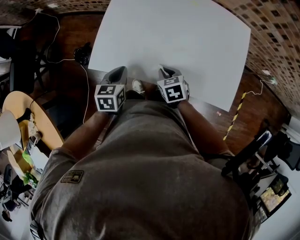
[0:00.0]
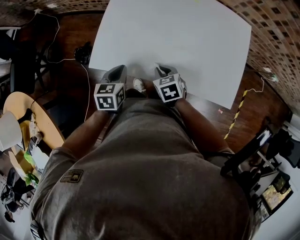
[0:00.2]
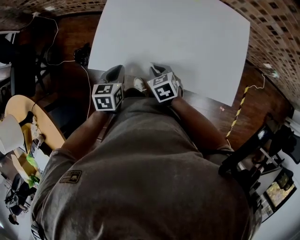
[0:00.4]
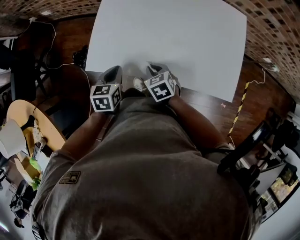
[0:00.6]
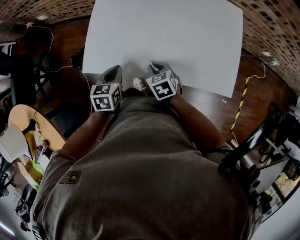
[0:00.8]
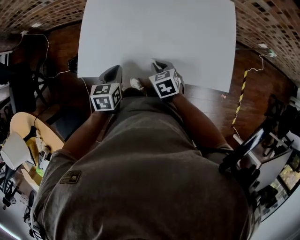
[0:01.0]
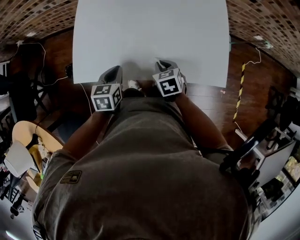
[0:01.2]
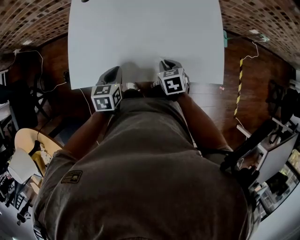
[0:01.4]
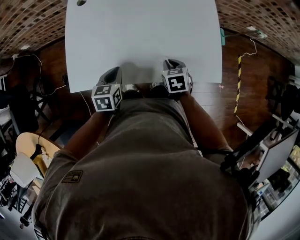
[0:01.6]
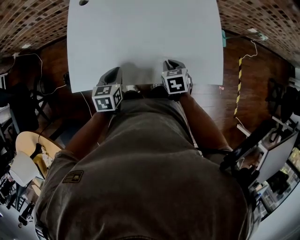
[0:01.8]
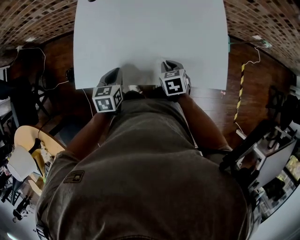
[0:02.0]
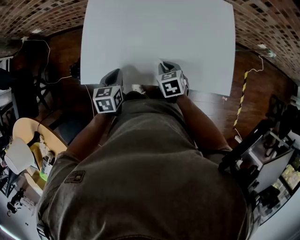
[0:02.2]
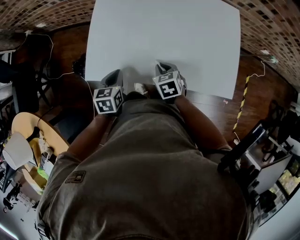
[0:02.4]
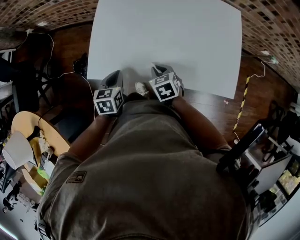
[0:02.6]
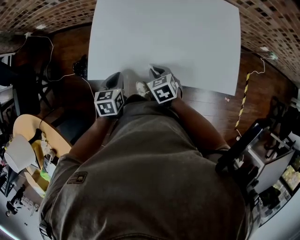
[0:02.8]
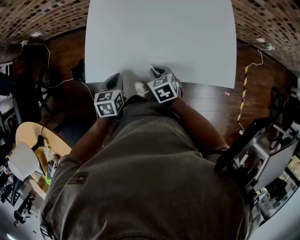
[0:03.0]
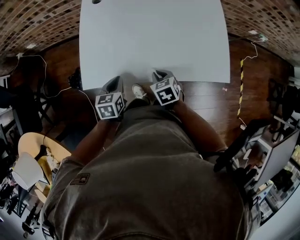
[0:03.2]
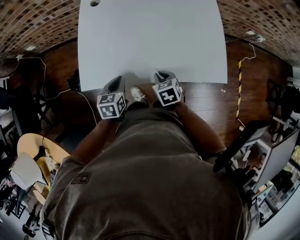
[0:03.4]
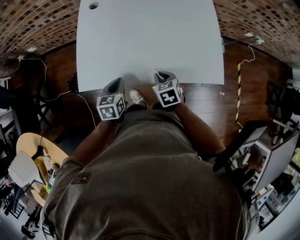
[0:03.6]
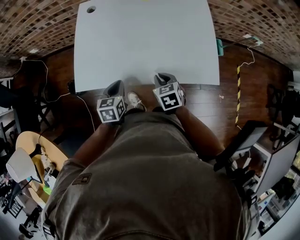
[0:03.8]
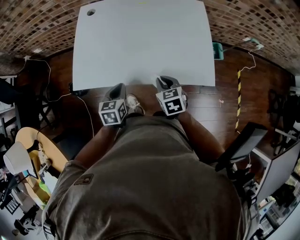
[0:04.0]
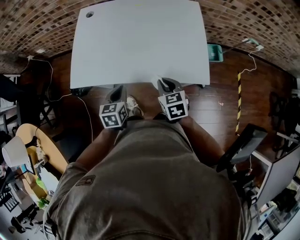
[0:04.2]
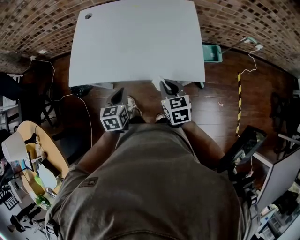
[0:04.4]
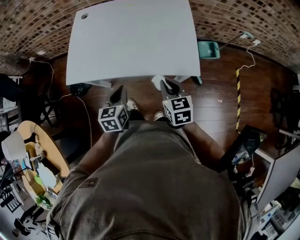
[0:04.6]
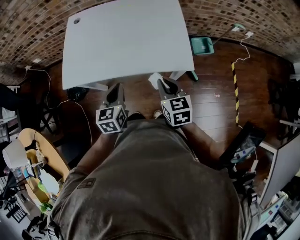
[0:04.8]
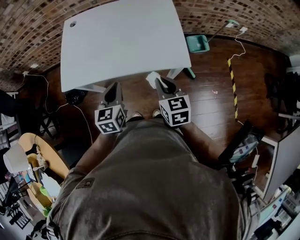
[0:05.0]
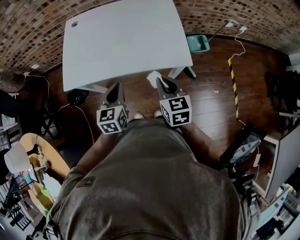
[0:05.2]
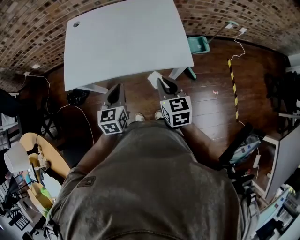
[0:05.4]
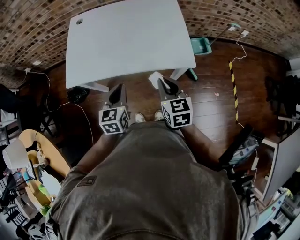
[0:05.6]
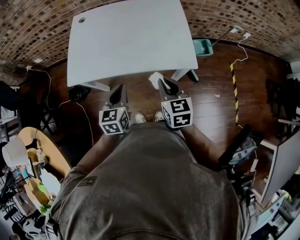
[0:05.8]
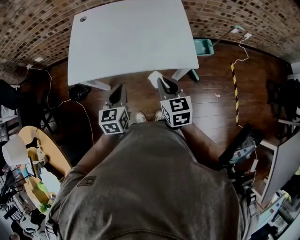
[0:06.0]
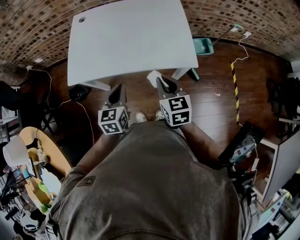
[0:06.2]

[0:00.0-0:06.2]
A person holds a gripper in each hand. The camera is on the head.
0:00.0 to 0:01.6: Both grippers move to the right, about 15 cm. The right gripper rotates approximately 20 degrees.
0:01.6 to 0:03.2: The right gripper goes some 15 cm to the left. Meanwhile the left gripper goes some 10 cm to the left.
0:03.2 to 0:04.6: The left gripper heads to the right, backward and upward, covering about 25 cm; the right gripper is displaced to the right, upward and backward by some 25 cm, and rotates approximately 30 degrees.
0:04.6 to 0:06.2: The right gripper ends up some 5 cm from where it was.

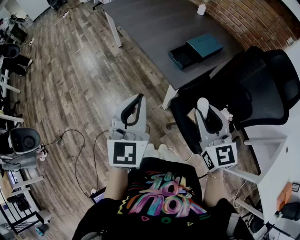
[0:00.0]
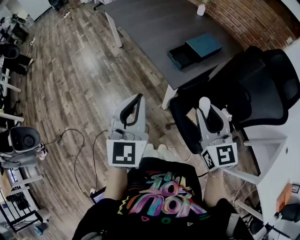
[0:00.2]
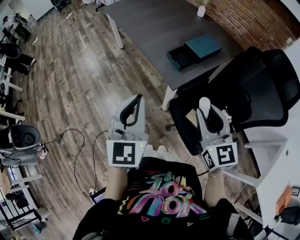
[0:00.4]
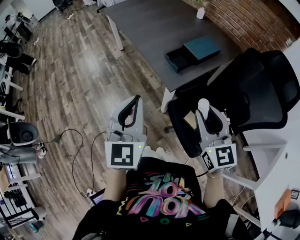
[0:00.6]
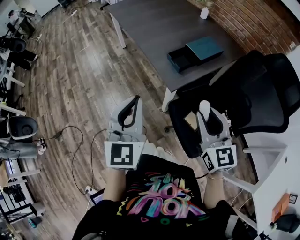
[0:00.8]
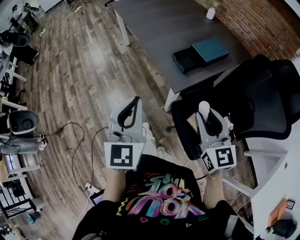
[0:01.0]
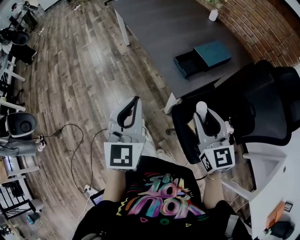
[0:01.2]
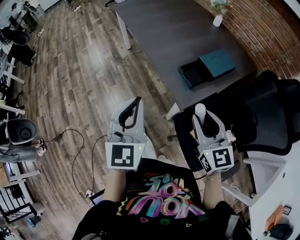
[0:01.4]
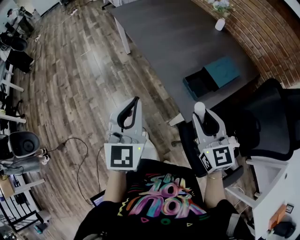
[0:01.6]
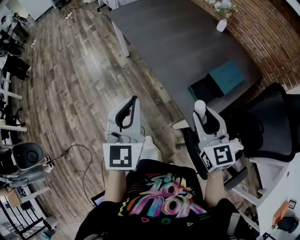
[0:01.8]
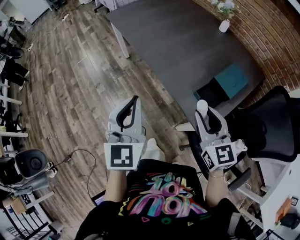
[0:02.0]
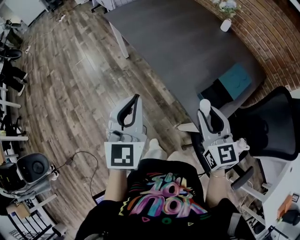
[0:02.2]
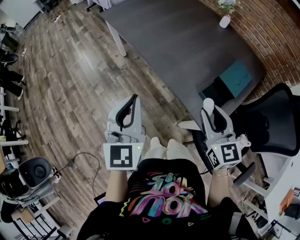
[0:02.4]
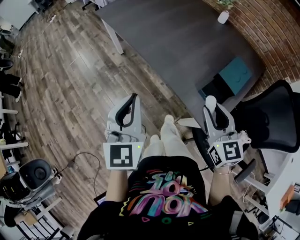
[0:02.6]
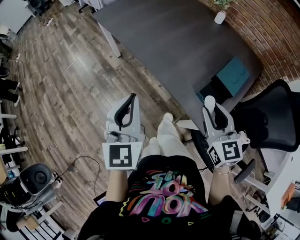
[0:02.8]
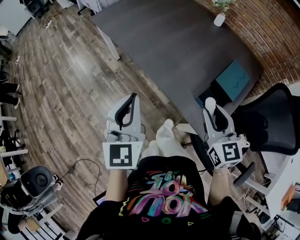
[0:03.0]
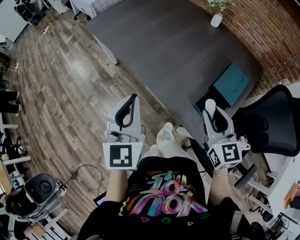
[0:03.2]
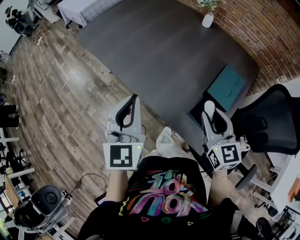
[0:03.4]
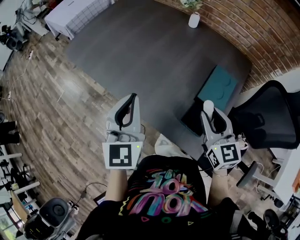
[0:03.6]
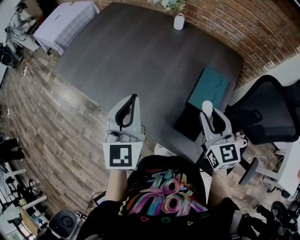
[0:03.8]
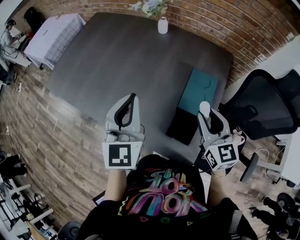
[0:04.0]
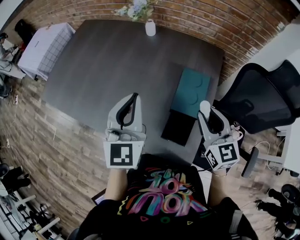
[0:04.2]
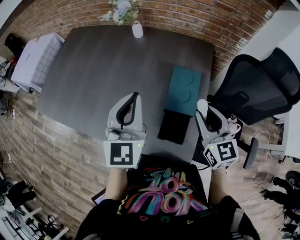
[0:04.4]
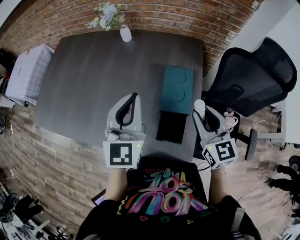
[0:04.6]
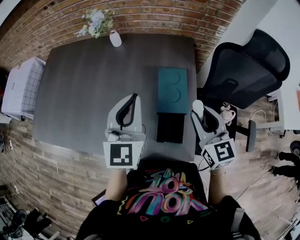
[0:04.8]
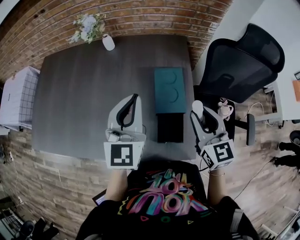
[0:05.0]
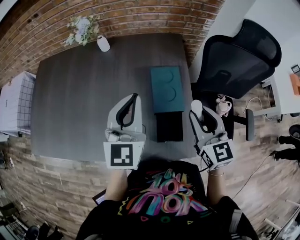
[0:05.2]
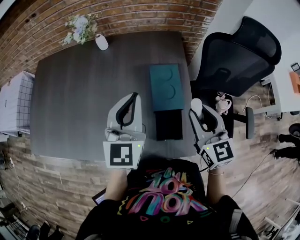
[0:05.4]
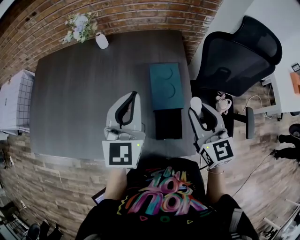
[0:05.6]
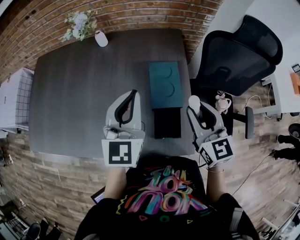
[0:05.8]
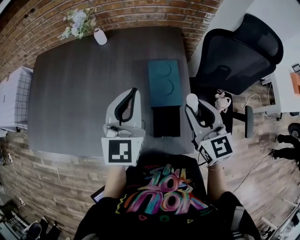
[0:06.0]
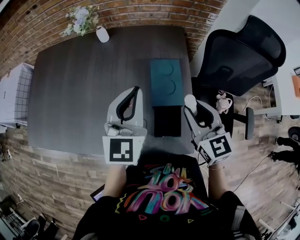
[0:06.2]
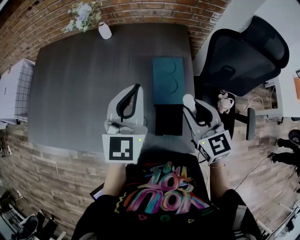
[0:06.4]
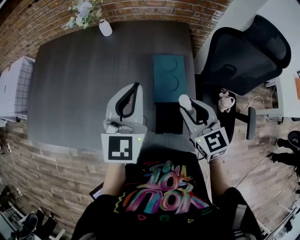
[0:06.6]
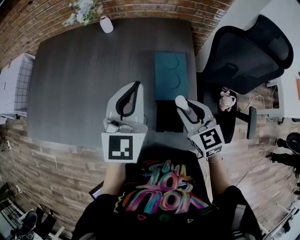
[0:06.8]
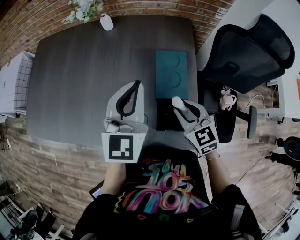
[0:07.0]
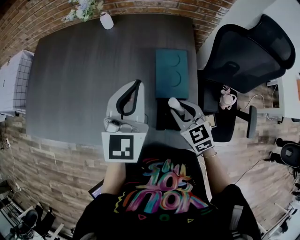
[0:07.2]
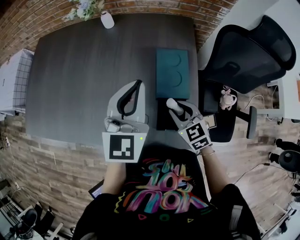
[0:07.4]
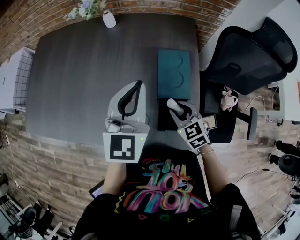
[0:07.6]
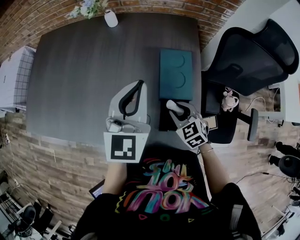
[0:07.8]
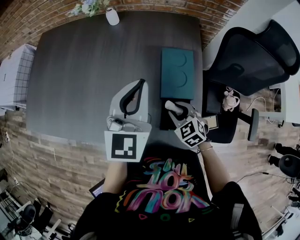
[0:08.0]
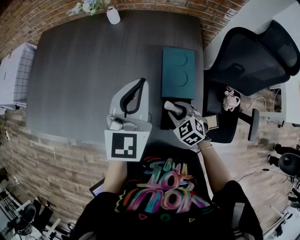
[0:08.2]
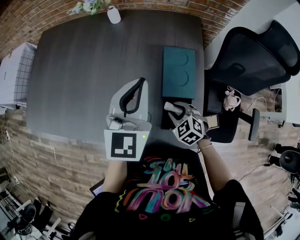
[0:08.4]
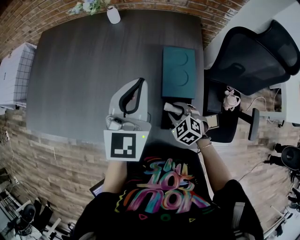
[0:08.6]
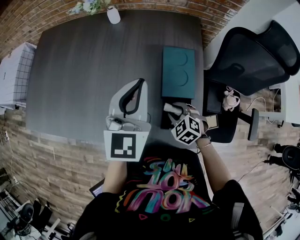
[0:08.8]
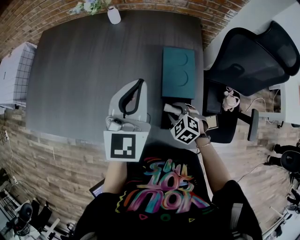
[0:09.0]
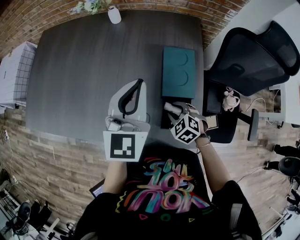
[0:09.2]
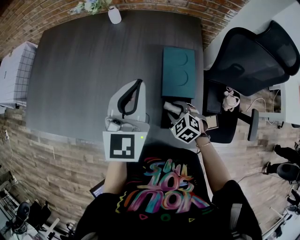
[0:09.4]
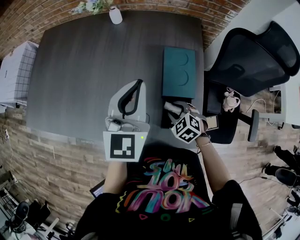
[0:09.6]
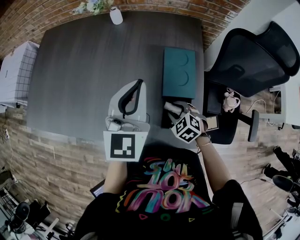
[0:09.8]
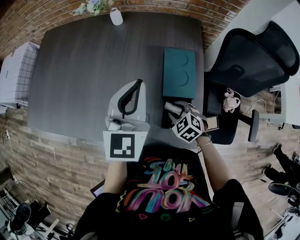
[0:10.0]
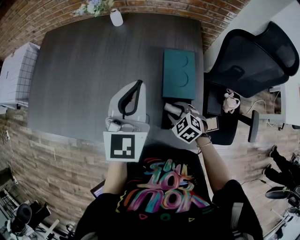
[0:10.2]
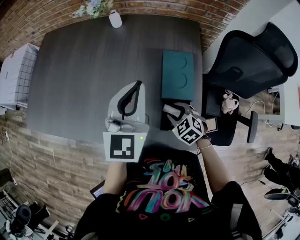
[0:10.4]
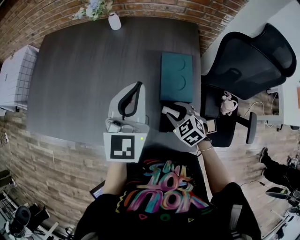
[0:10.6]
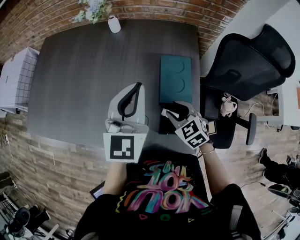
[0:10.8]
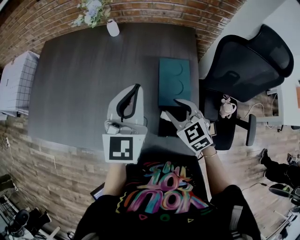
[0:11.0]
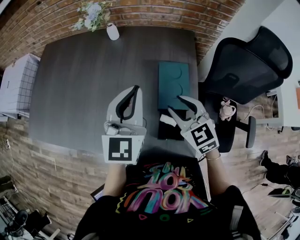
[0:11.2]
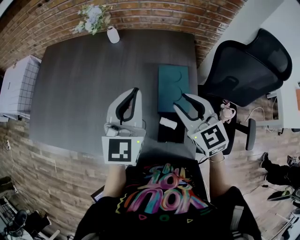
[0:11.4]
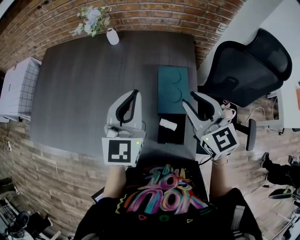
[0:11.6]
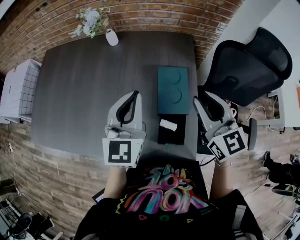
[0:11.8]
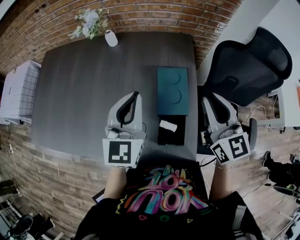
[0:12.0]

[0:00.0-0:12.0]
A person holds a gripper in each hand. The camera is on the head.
0:00.0 to 0:01.6: Both grippers travel together forward, about 20 cm.
0:01.6 to 0:03.0: The grippers both shift forward by roughly 20 cm.
0:03.0 to 0:04.4: The left gripper shifts by roughly 35 cm, and turns by about 30 degrees, while the right gripper ends up approximately 20 cm from where it was, and rotates some 30 degrees.
0:04.4 to 0:06.0: The left gripper heads to the right, covering approximately 5 cm.
0:06.0 to 0:07.6: The right gripper moves downward, roughly 20 cm, and turns by roughly 30 degrees.
0:07.6 to 0:09.0: The right gripper shifts roughly 5 cm downward, and changes its angle by about 30 degrees.
0:09.0 to 0:10.4: The grippers make only small movements.
0:10.4 to 0:12.0: The right gripper is displaced upward by some 30 cm, angles its fingers upward, by some 50 degrees, and closes.

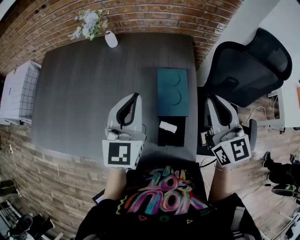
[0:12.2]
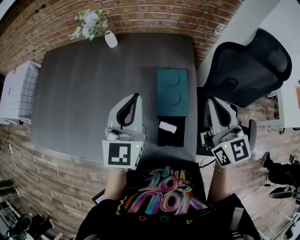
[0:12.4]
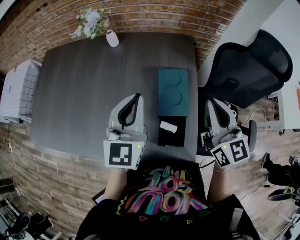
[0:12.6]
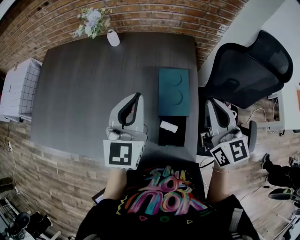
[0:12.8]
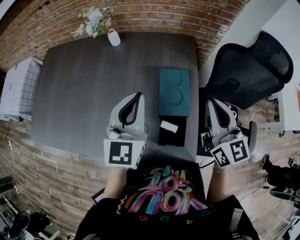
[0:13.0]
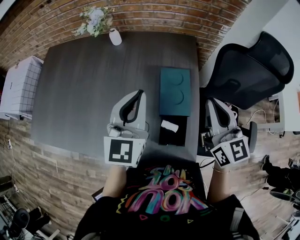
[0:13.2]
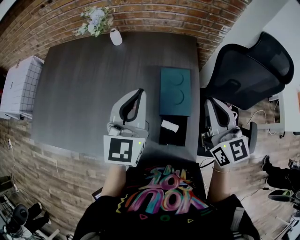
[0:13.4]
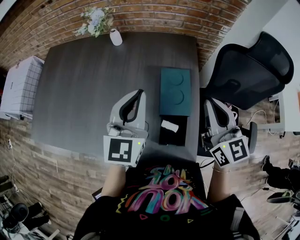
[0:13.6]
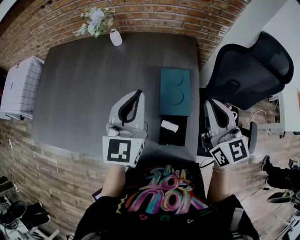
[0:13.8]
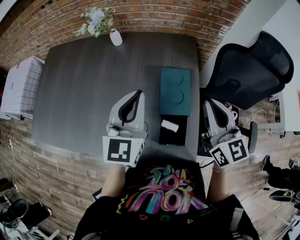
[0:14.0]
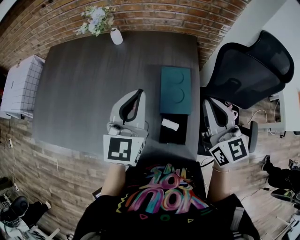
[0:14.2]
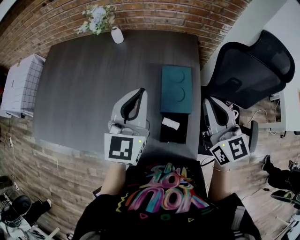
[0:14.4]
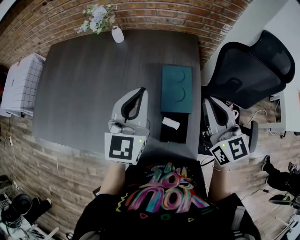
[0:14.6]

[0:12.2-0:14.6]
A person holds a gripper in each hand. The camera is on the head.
0:12.2 to 0:13.4: The grippers stay close to where they were, moving slightly.
0:13.4 to 0:14.6: Neither gripper changes place.

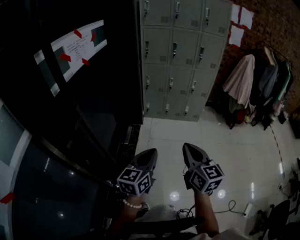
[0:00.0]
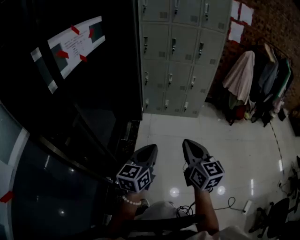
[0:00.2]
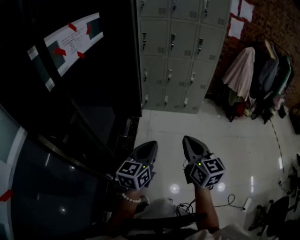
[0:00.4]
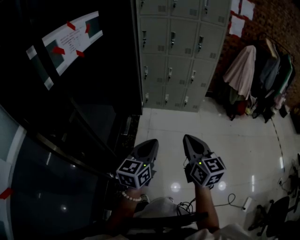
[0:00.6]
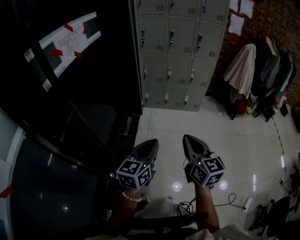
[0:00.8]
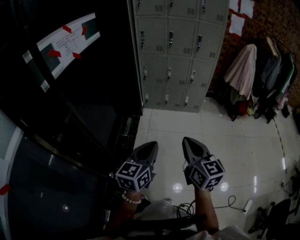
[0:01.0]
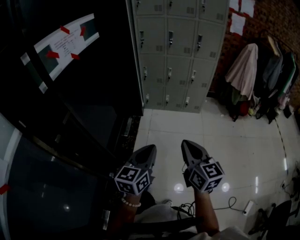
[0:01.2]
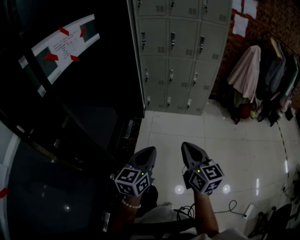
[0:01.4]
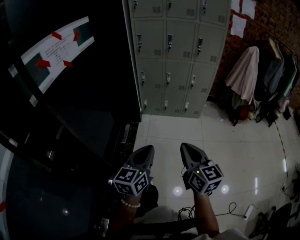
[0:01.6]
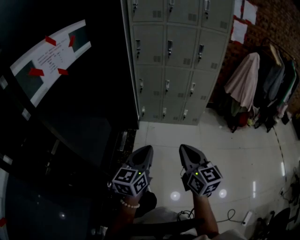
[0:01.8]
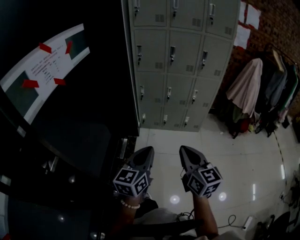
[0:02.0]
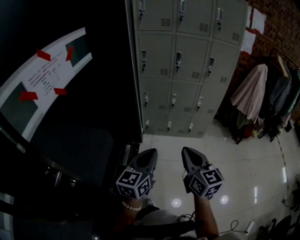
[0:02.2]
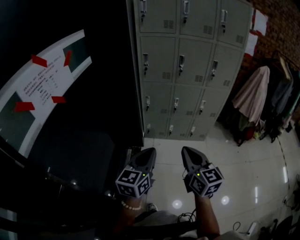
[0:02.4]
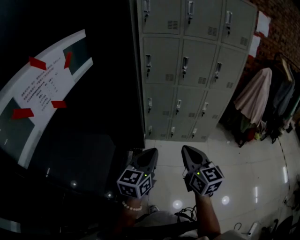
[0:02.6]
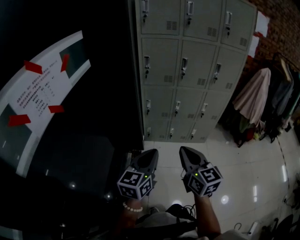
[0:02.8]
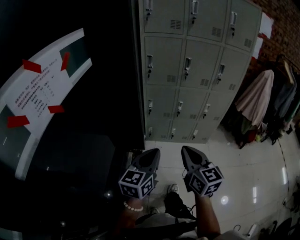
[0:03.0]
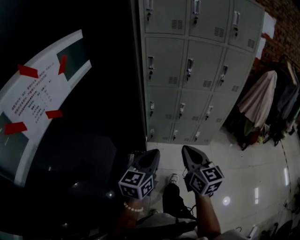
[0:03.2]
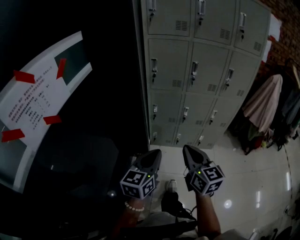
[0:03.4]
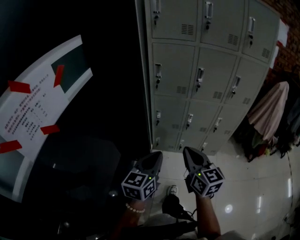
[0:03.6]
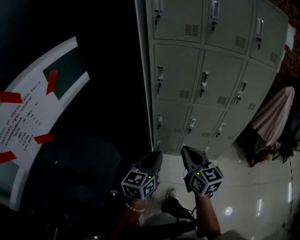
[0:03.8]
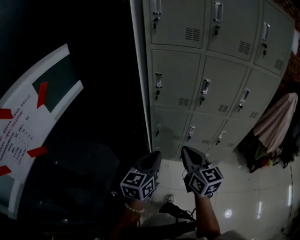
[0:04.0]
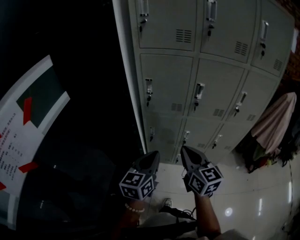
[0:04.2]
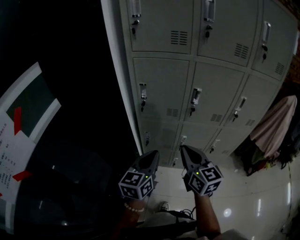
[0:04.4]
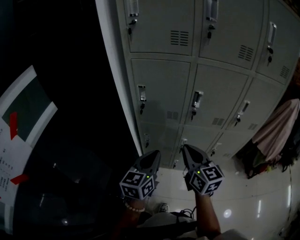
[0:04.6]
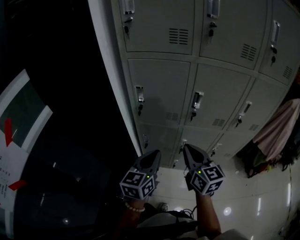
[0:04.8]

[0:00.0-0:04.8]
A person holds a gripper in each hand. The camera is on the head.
0:00.0 to 0:01.6: Both grippers travel together forward and to the right, about 10 cm.
0:01.6 to 0:03.2: The two grippers go approximately 35 cm forward.
0:03.2 to 0:04.8: The two grippers go approximately 35 cm forward.
